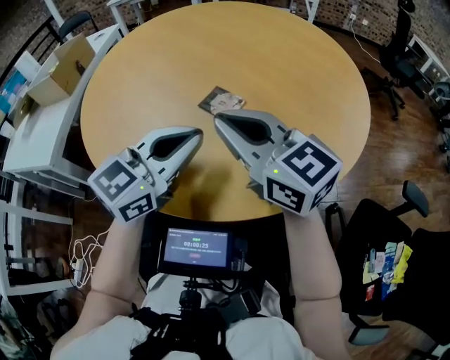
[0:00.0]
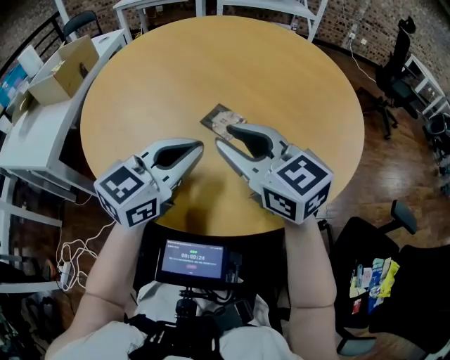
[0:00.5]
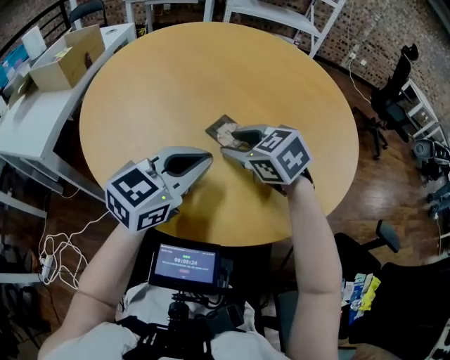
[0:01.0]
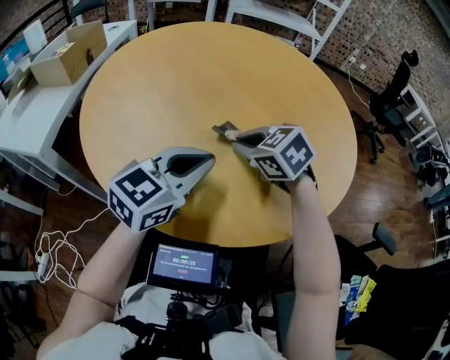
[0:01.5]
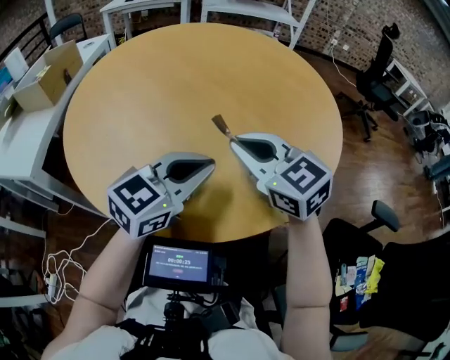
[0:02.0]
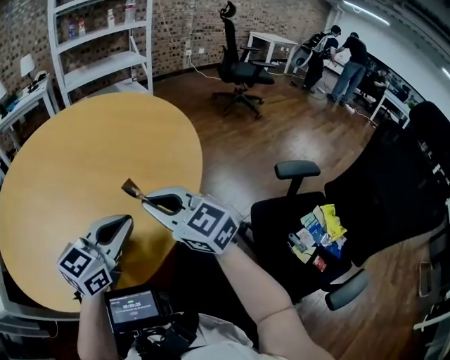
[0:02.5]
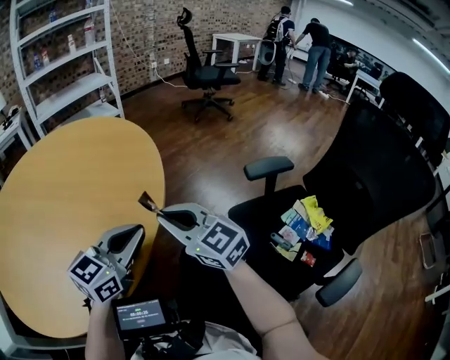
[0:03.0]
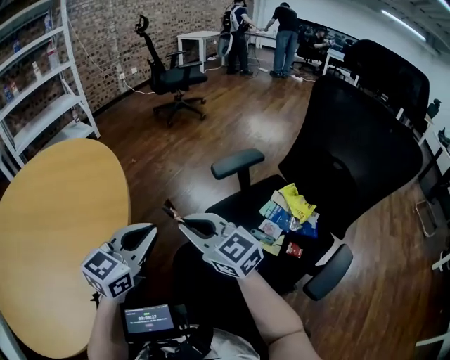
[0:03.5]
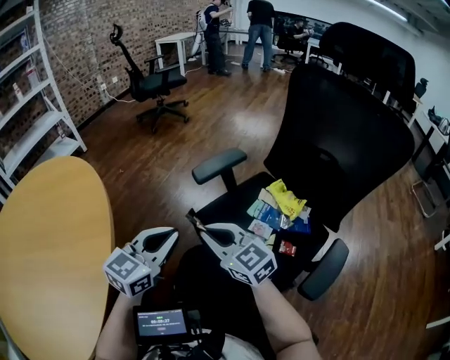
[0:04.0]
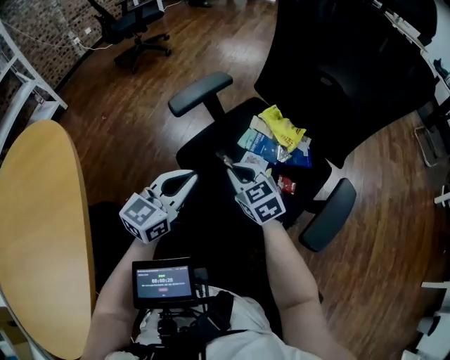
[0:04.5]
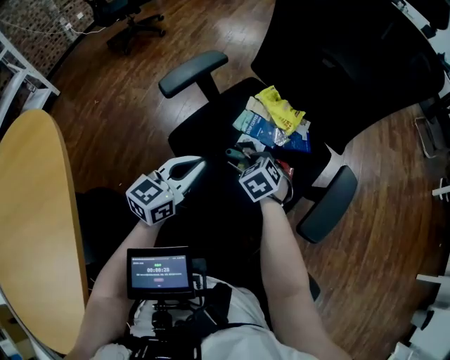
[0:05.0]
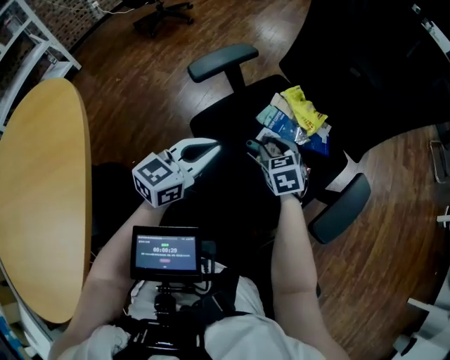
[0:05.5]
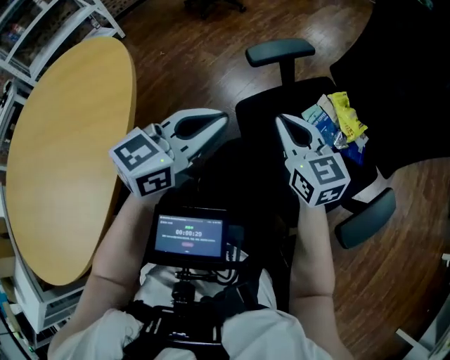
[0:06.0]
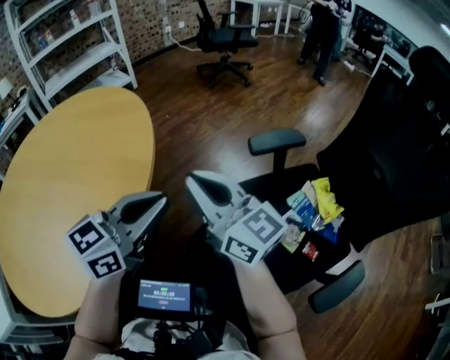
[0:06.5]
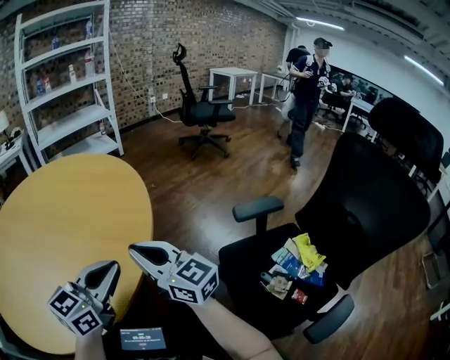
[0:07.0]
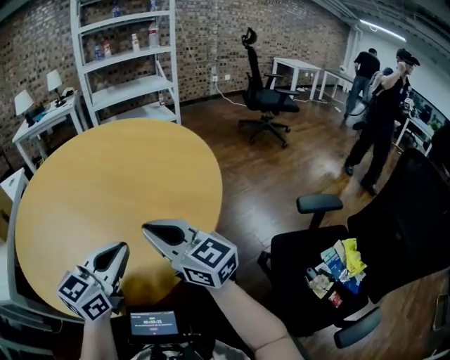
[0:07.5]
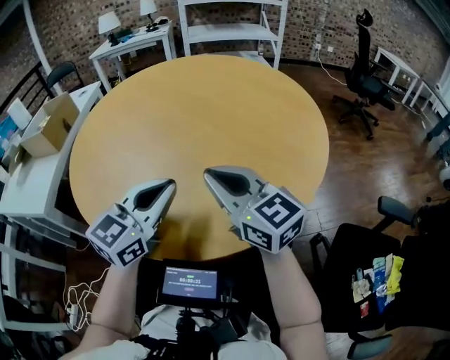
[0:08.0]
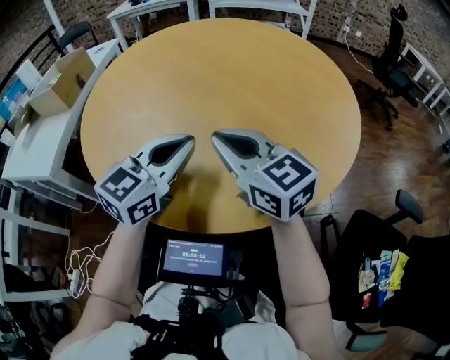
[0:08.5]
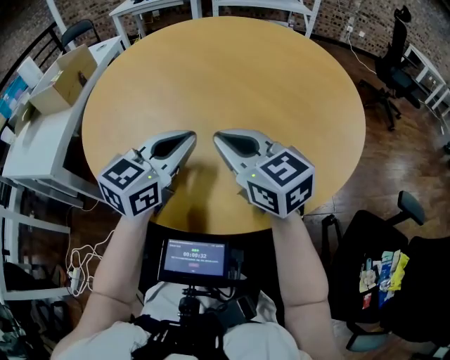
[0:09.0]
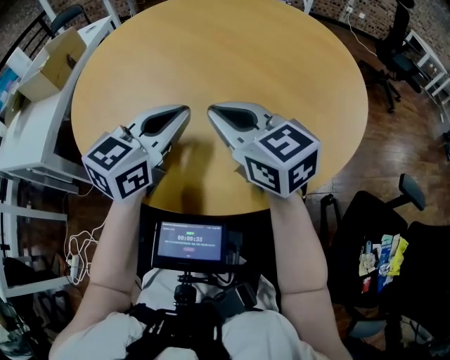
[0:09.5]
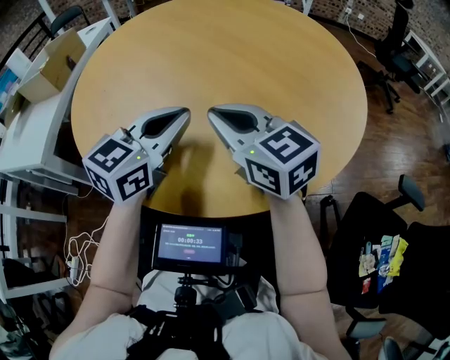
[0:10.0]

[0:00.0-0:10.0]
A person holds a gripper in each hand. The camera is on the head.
0:00.0 to 0:02.0: The right gripper moves roughly 10 cm downward and comes back, changes its angle by about 20 degrees, and opens, then closes again.
0:02.0 to 0:04.0: The two grippers travel together, roughly 50 cm. The right gripper changes its angle by roughly 60 degrees. The left gripper turns by roughly 50 degrees.
0:04.0 to 0:06.0: The right gripper moves approximately 25 cm downward and comes back, and opens, then closes once more; the left gripper moves approximately 15 cm downward and comes back.
0:06.0 to 0:08.0: Both grippers are carried about 50 cm. The left gripper swivels approximately 60 degrees. Meanwhile the right gripper changes its angle by some 70 degrees.
0:08.0 to 0:10.0: The left gripper ends up roughly 5 cm from where it was; the right gripper is displaced to the left by roughly 5 cm.

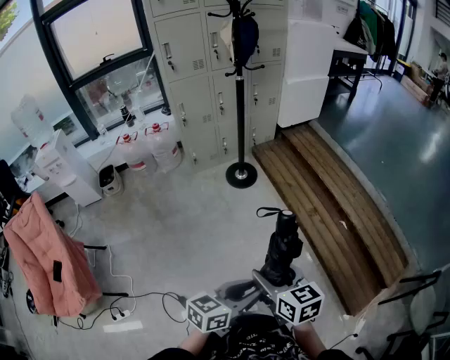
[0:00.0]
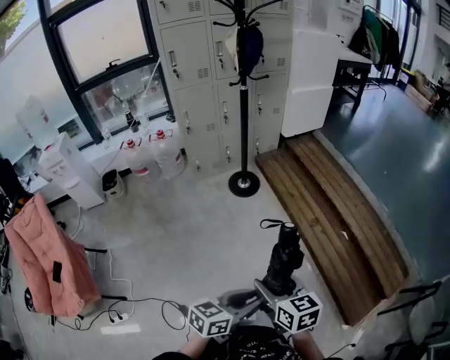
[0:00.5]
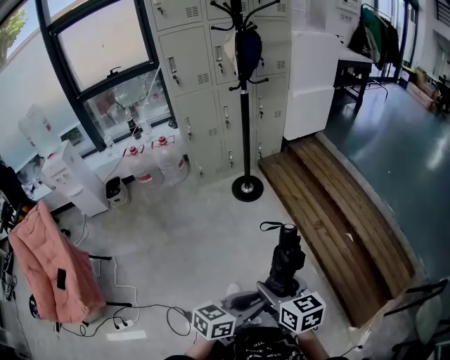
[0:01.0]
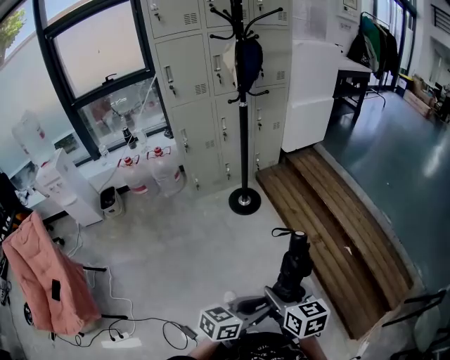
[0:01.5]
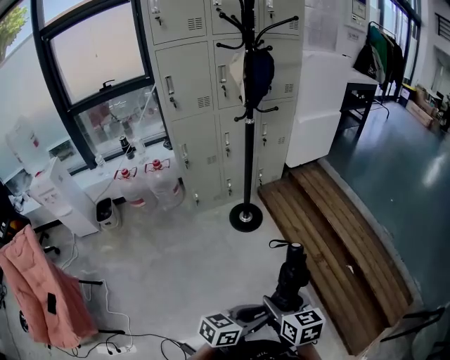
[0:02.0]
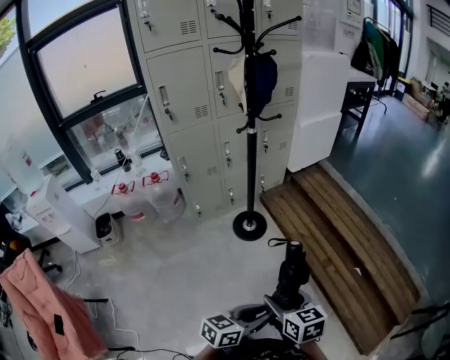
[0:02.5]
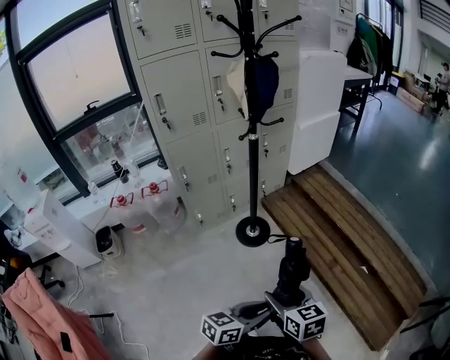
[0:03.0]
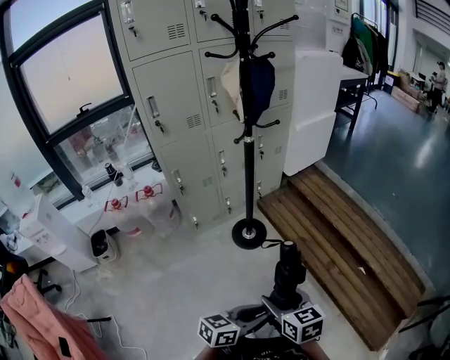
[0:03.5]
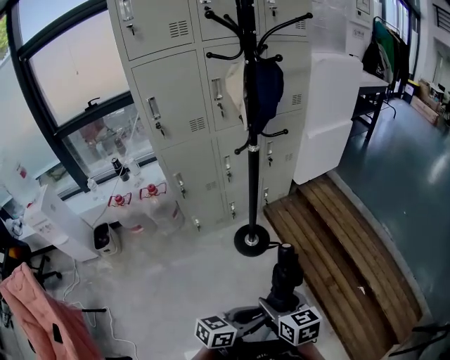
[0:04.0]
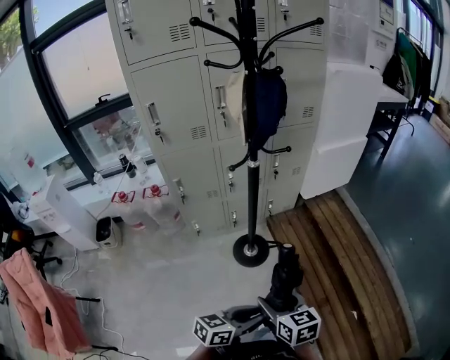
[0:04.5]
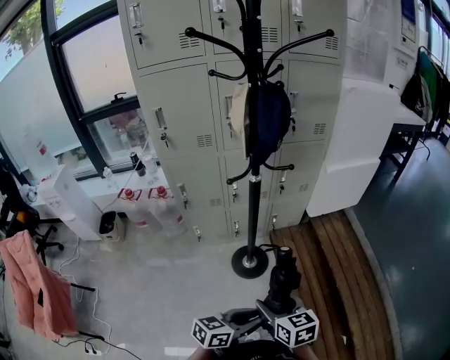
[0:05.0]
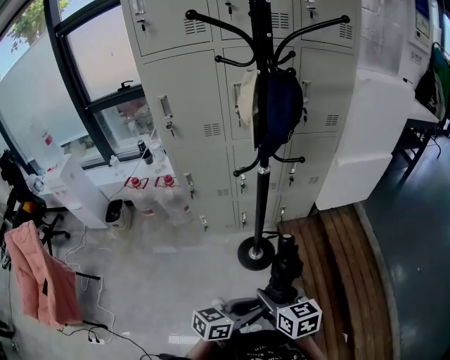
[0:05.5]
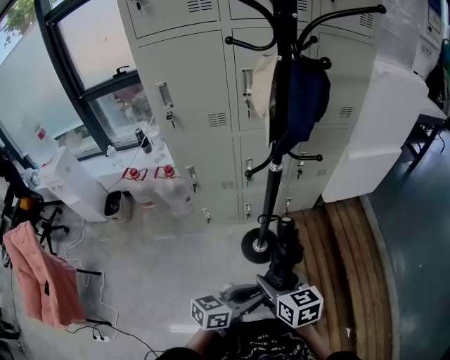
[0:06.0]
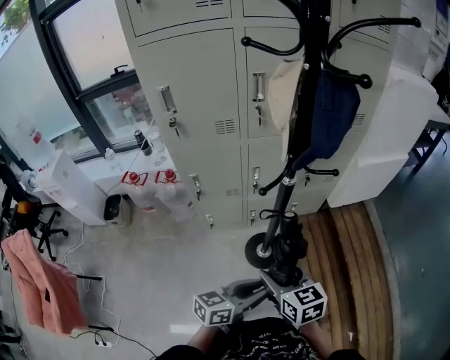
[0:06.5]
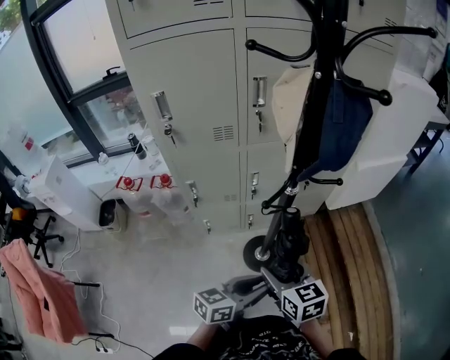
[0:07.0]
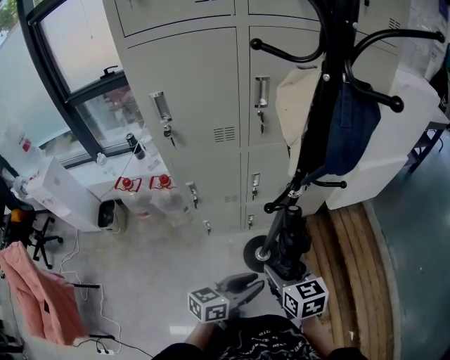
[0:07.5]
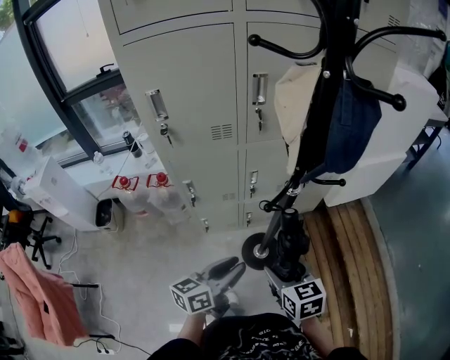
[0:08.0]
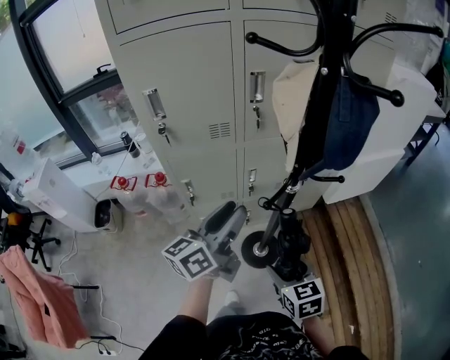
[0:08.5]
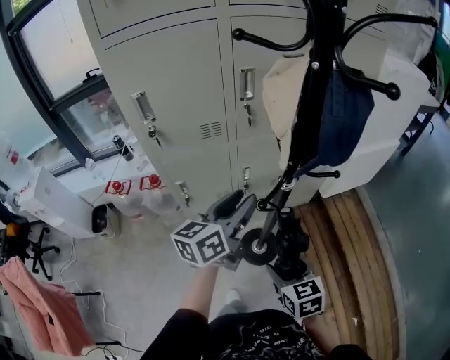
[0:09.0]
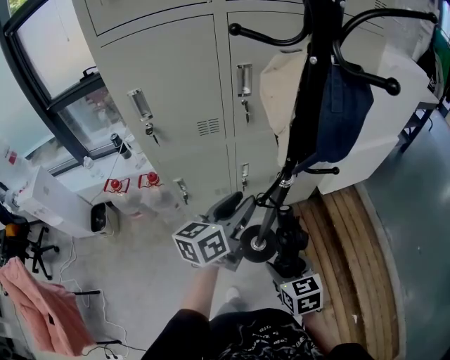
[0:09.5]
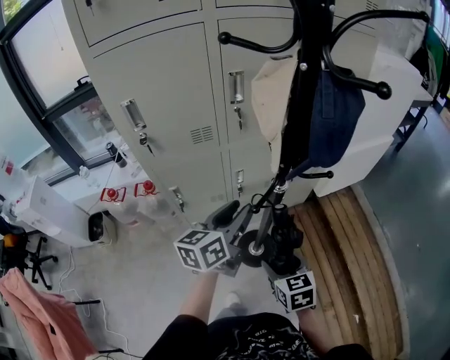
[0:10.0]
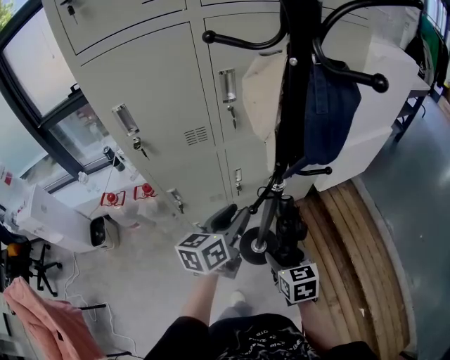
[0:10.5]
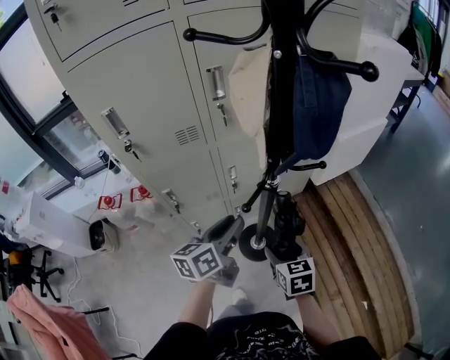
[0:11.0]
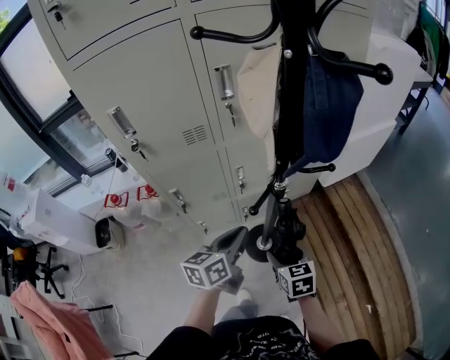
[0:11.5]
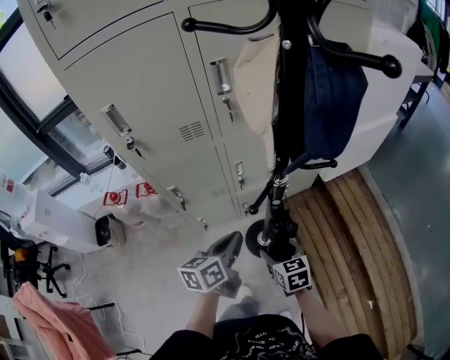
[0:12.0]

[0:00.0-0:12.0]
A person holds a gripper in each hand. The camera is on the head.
0:00.0 to 0:02.0: The two grippers go roughly 15 cm forward.
0:02.0 to 0:04.0: Both grippers travel together forward and to the left, about 20 cm.
0:04.0 to 0:06.0: Both grippers travel together forward, approximately 25 cm.
0:06.0 to 0:08.0: The left gripper goes approximately 20 cm to the left and forward. The right gripper moves forward and to the left, some 15 cm.
0:08.0 to 0:10.0: The left gripper heads forward and upward, covering roughly 15 cm.
0:10.0 to 0:12.0: The two grippers go some 10 cm downward. The left gripper closes its fingers.

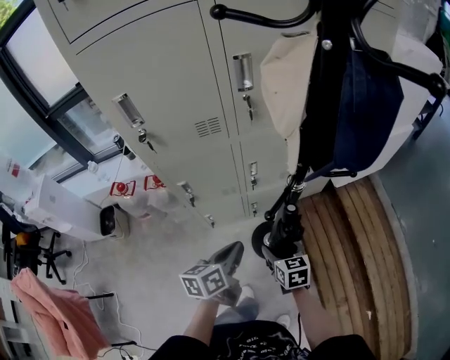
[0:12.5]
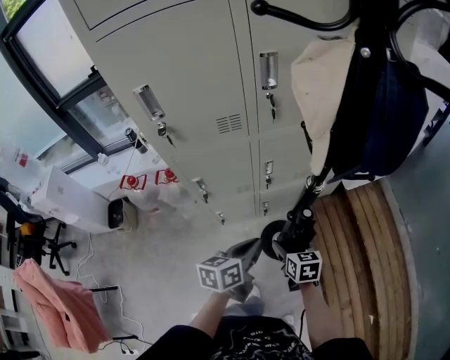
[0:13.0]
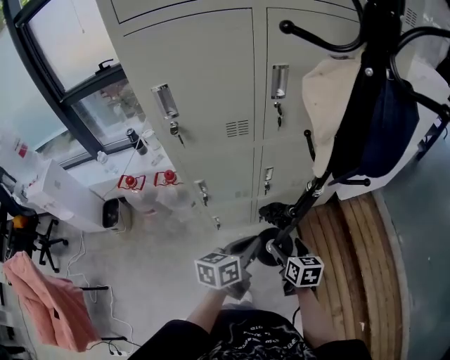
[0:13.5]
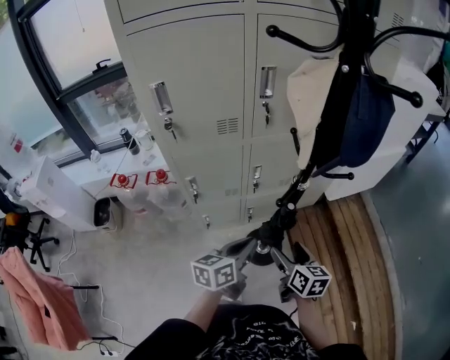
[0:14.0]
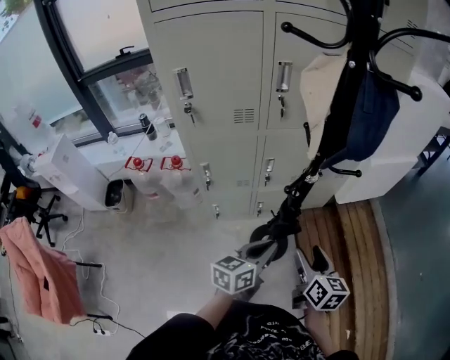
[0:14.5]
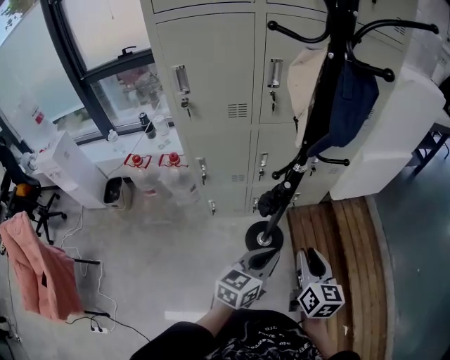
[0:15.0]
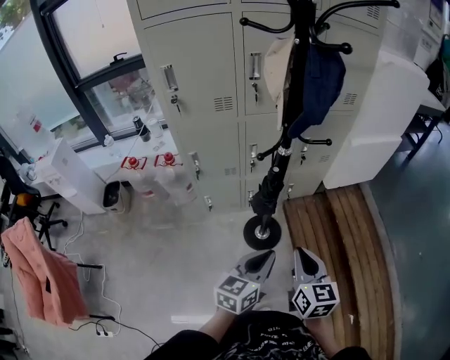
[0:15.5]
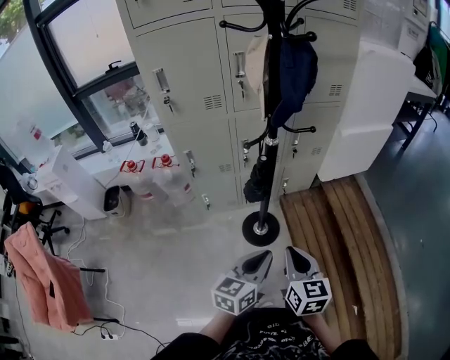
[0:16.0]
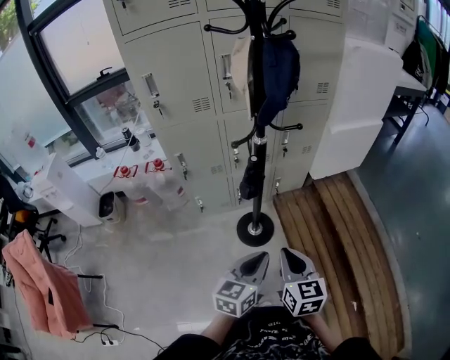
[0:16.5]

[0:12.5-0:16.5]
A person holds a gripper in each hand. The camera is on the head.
0:12.5 to 0:14.5: The right gripper is displaced upward, to the right and backward by some 20 cm, and swivels some 20 degrees, while the left gripper shifts approximately 10 cm to the right and backward.
0:14.5 to 0:16.5: The right gripper is displaced backward by about 15 cm, and closes its fingers, while the left gripper shifts approximately 20 cm backward and to the right.

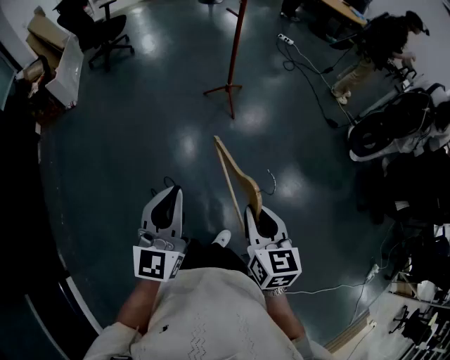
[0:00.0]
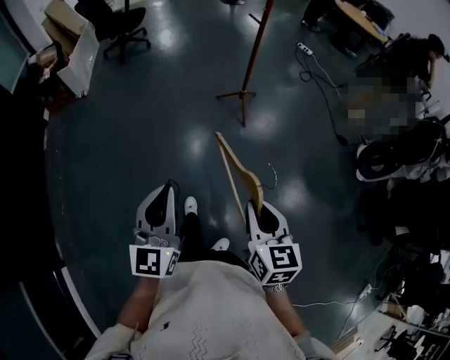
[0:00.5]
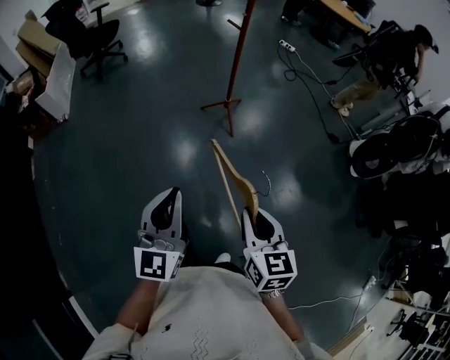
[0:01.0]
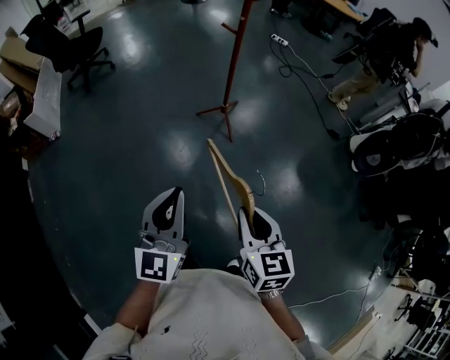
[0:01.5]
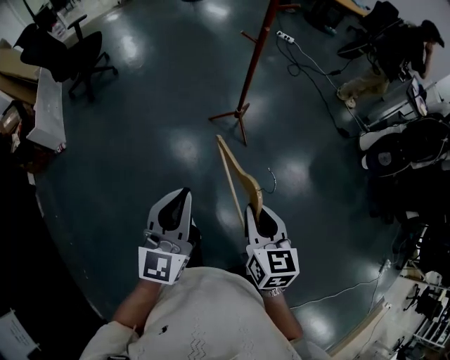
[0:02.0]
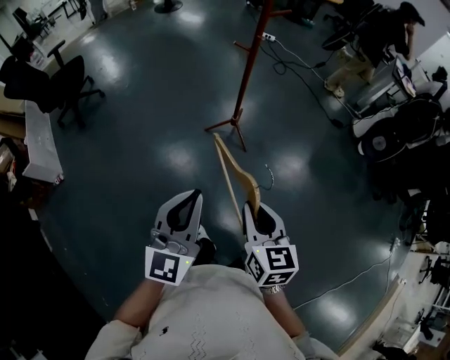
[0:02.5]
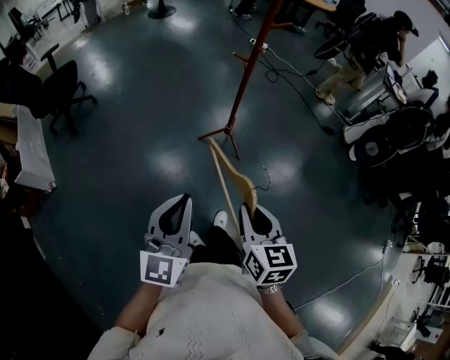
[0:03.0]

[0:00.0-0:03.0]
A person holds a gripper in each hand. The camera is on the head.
0:00.0 to 0:01.5: Both grippers move forward, roughly 35 cm.
0:01.5 to 0:03.0: Both grippers travel together to the left and forward, about 30 cm.
